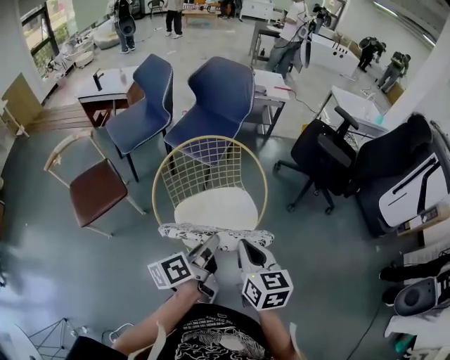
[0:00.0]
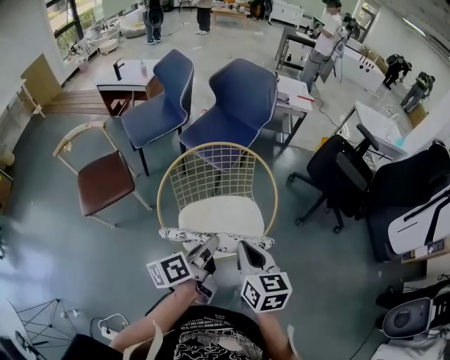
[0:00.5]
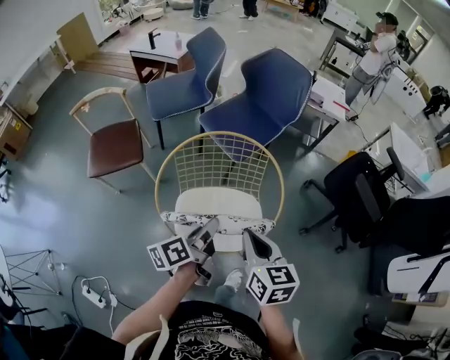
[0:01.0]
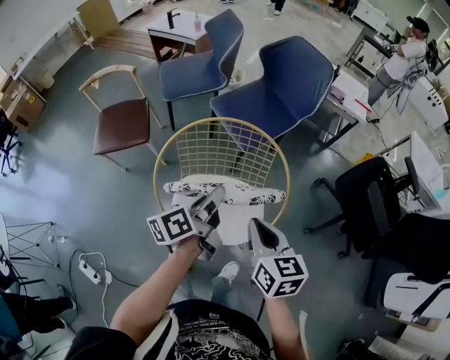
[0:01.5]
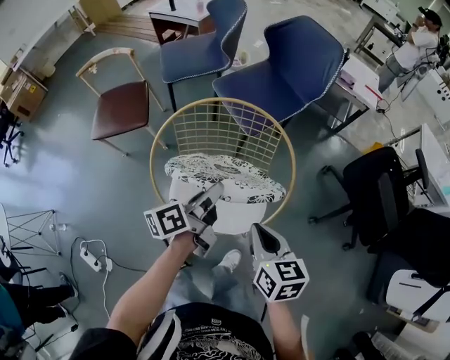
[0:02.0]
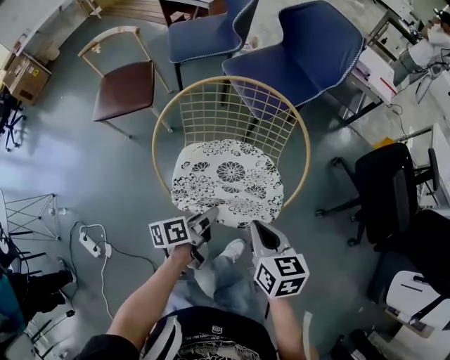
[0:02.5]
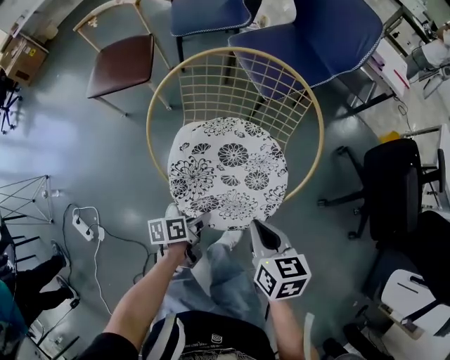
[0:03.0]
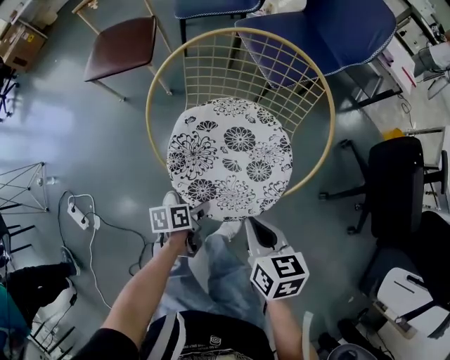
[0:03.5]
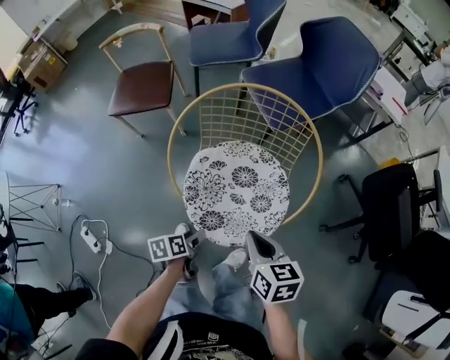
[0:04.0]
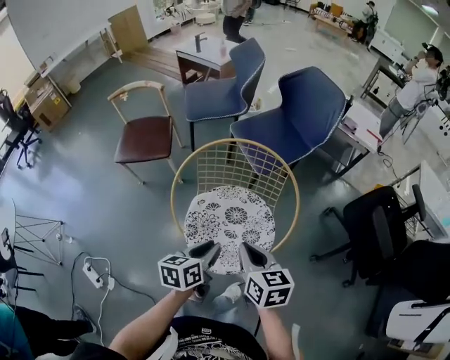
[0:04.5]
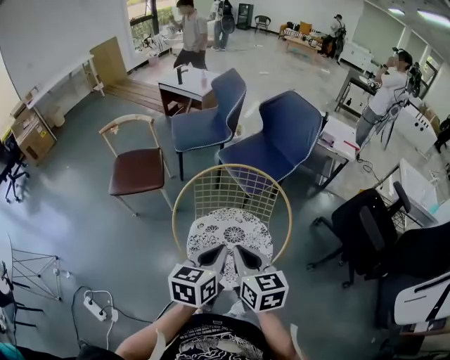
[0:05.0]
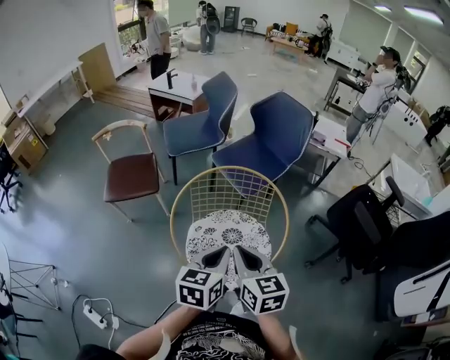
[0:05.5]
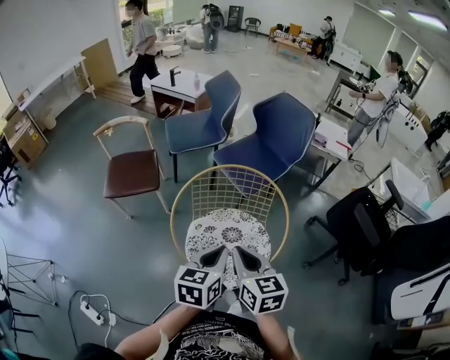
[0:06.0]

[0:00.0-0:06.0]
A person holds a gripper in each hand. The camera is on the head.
0:00.0 to 0:02.0: The right gripper changes place by about 20 cm, and rotates about 30 degrees. Meanwhile the left gripper ends up about 20 cm from where it was, and turns by roughly 20 degrees.
0:02.0 to 0:04.0: The right gripper moves downward and to the left, about 10 cm, while the left gripper heads downward, backward and to the left, covering some 30 cm, tips its fingers downward by approximately 40 degrees, and opens its fingers.
0:04.0 to 0:06.0: The left gripper heads upward, covering approximately 30 cm, rolls clockwise, seen from behind, by about 50 degrees, and closes its fingers, while the right gripper shifts roughly 15 cm upward, and swivels about 20 degrees.

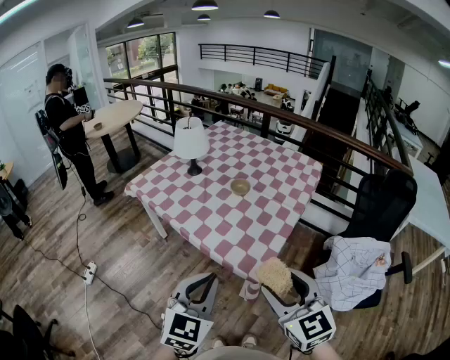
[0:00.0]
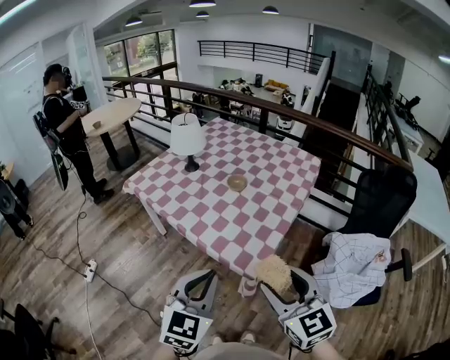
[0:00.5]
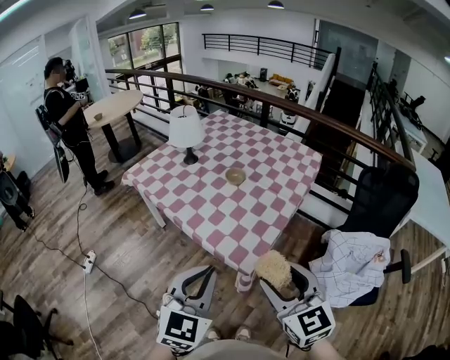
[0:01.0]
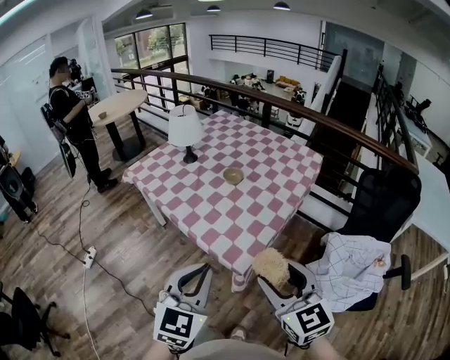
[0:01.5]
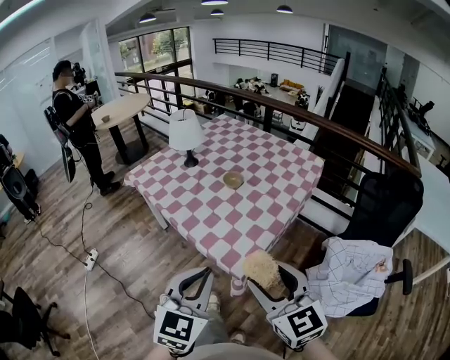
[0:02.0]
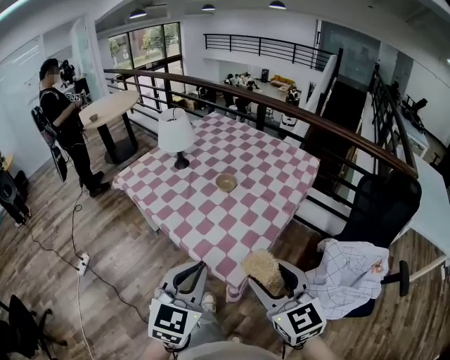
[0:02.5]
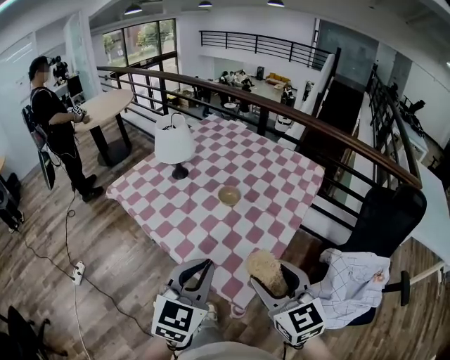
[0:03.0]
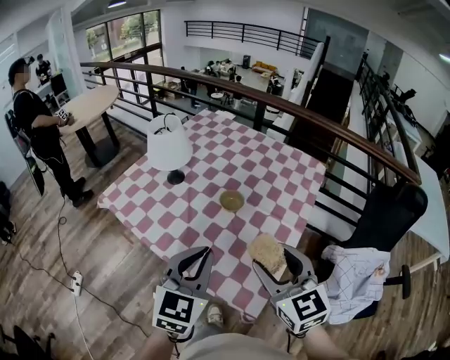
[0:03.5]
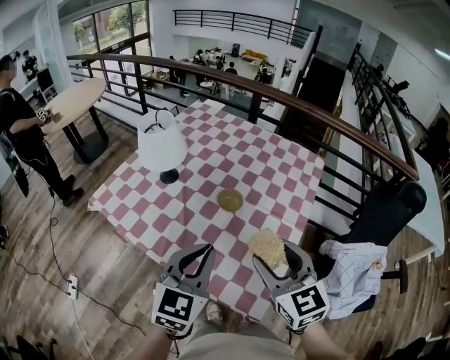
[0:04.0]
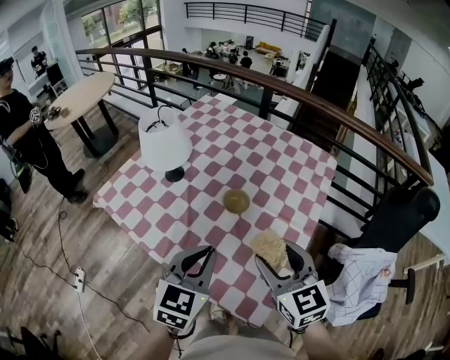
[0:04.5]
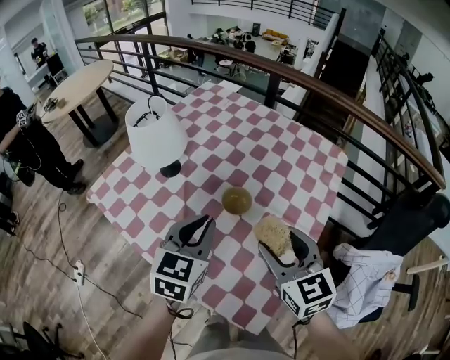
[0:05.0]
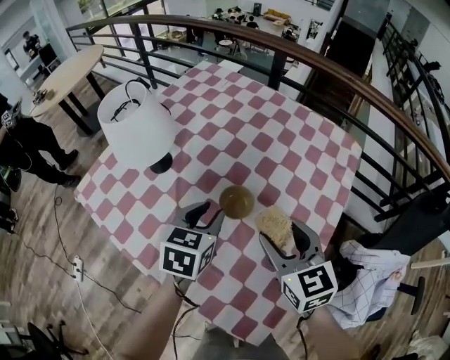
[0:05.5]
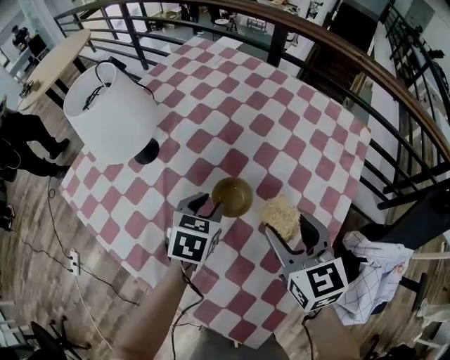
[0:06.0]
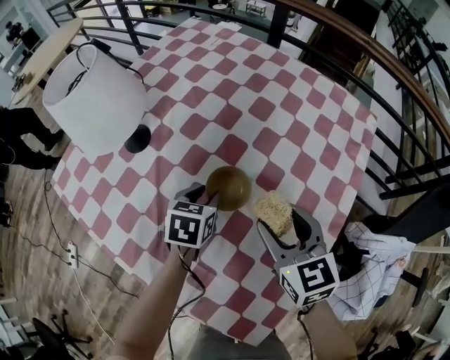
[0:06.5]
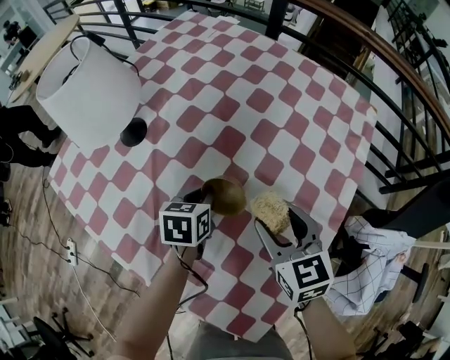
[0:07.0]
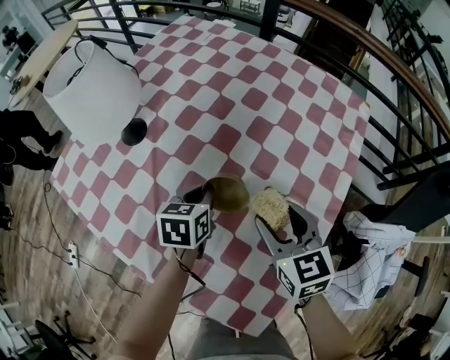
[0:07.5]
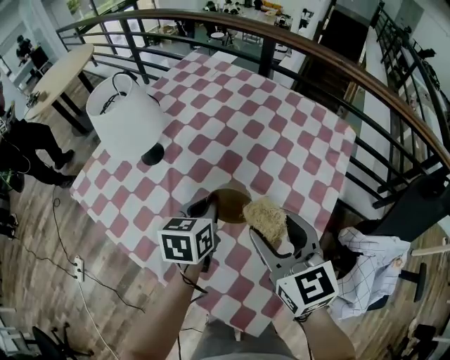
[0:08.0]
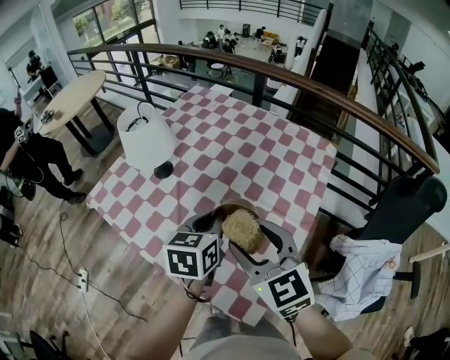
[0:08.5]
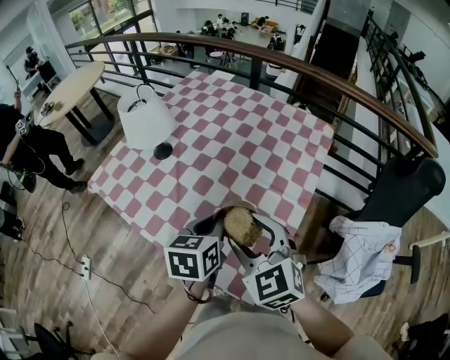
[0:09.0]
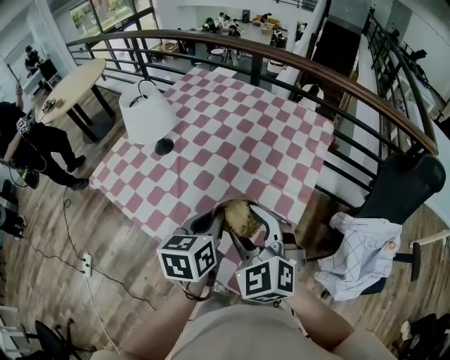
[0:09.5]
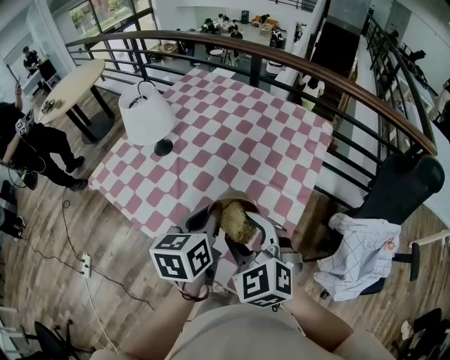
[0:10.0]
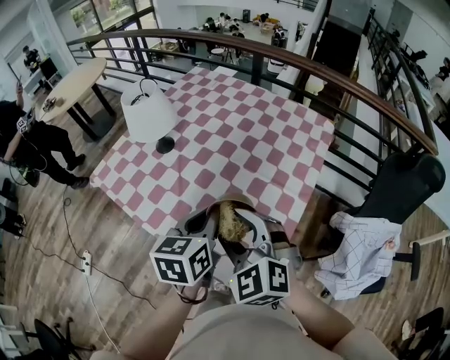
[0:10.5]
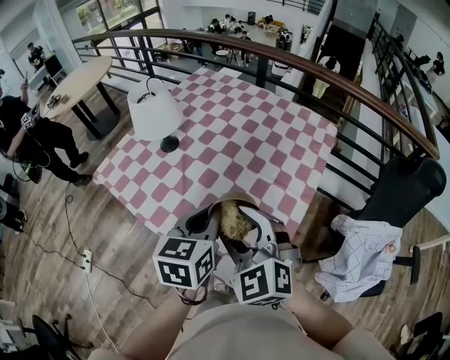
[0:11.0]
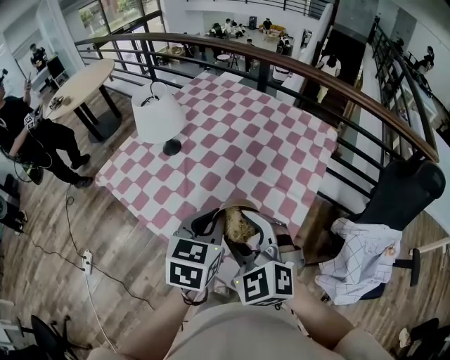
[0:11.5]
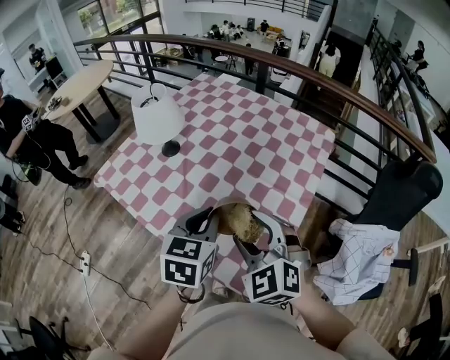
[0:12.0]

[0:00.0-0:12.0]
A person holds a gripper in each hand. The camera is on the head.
0:00.0 to 0:02.0: The grippers both shift to the right by some 10 cm.
0:02.0 to 0:04.0: Both grippers move forward, approximately 35 cm.
0:04.0 to 0:06.0: The two grippers go some 35 cm forward and downward. The left gripper angles its fingers downward, by some 30 degrees, and opens its fingers.
0:06.0 to 0:08.0: The left gripper shifts about 10 cm upward, and closes up; the right gripper is displaced upward and backward by roughly 10 cm.
0:08.0 to 0:10.0: The right gripper goes about 15 cm backward, and swivels approximately 30 degrees. Meanwhile the left gripper shifts some 25 cm backward and upward.
0:10.0 to 0:12.0: The left gripper turns by some 20 degrees.

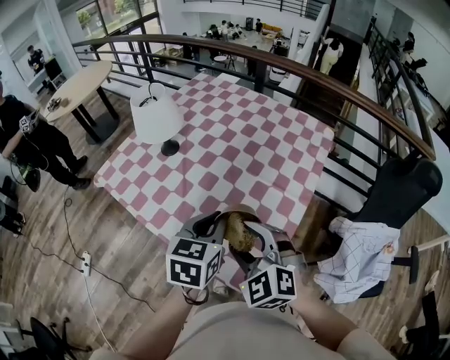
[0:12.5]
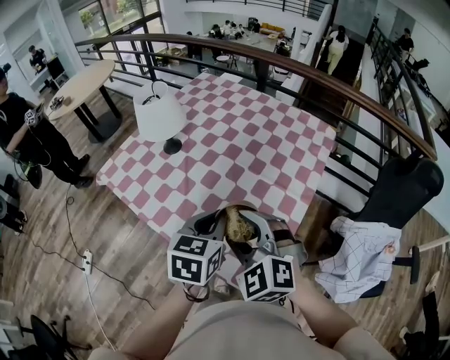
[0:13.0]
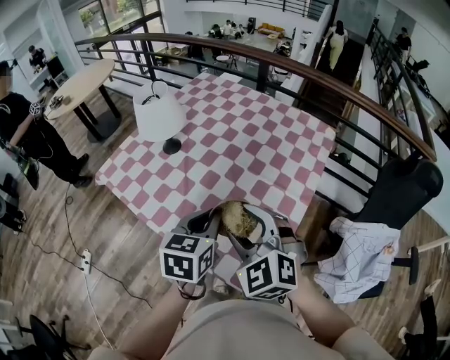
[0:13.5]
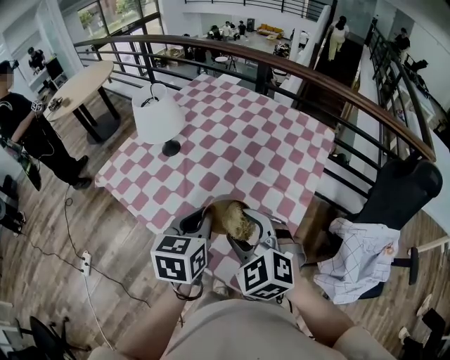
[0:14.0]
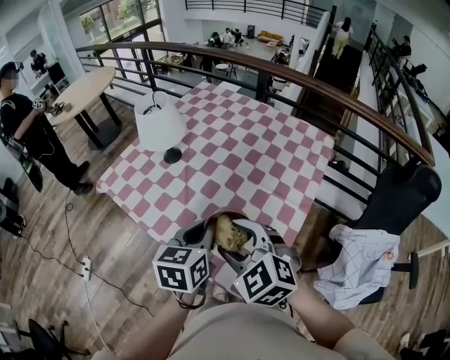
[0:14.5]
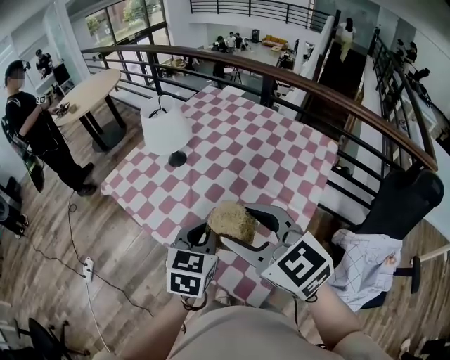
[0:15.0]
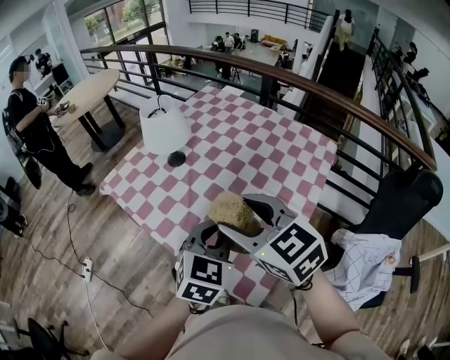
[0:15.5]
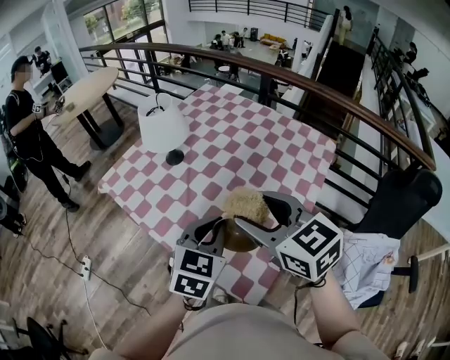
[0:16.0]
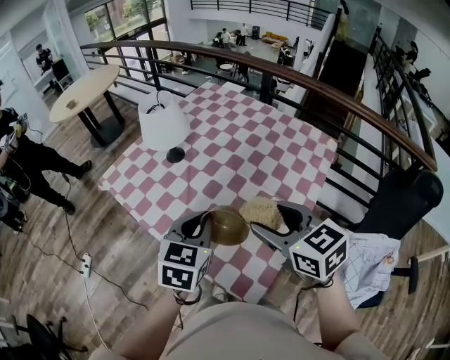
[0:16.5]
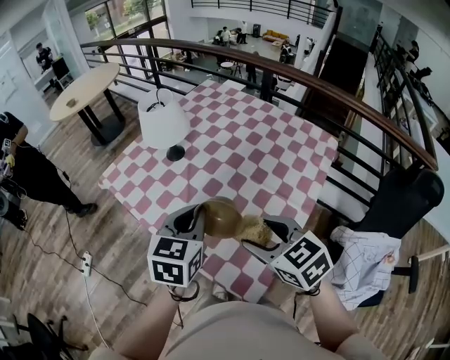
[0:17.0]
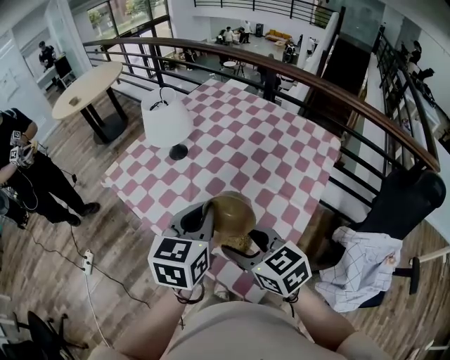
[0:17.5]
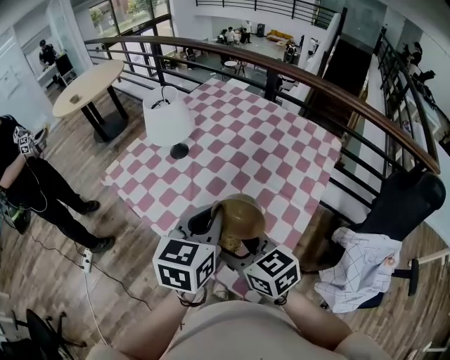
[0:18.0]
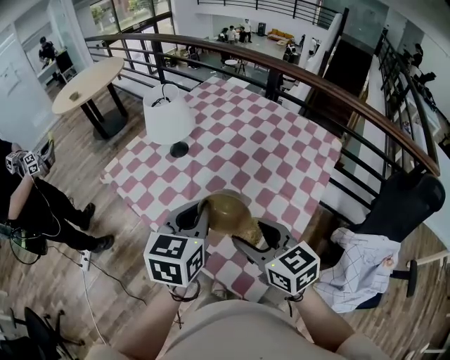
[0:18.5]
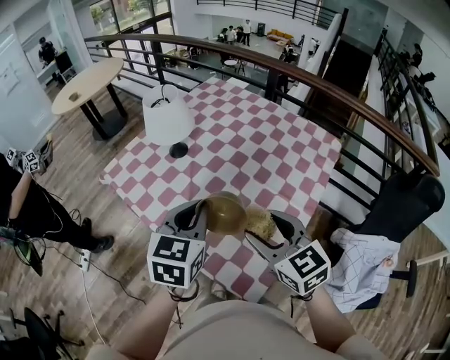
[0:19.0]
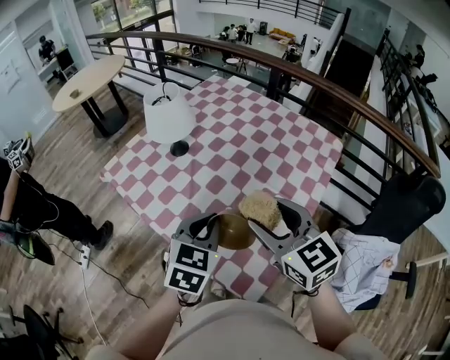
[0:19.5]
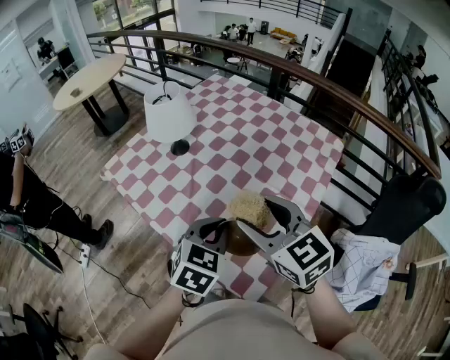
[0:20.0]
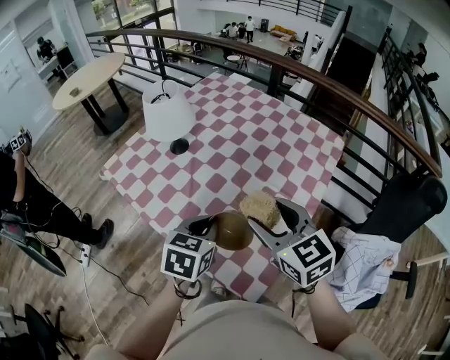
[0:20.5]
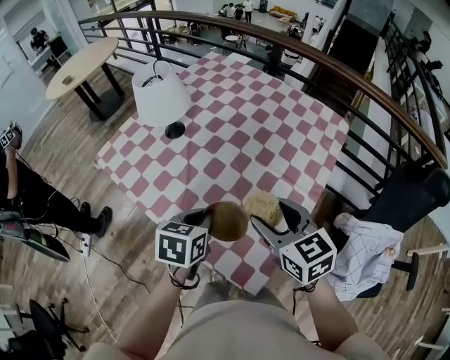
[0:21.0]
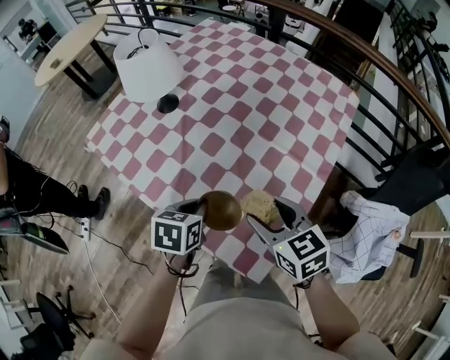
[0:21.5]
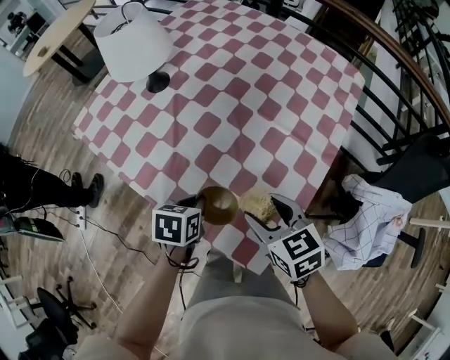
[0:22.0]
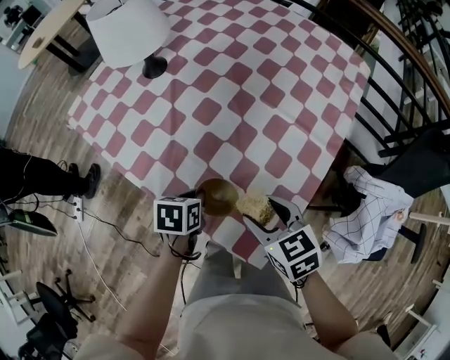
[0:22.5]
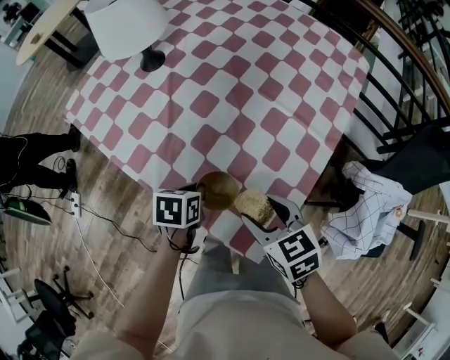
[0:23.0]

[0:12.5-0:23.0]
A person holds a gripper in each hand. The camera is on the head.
0:12.5 to 0:14.5: The grippers make only small movements.
0:14.5 to 0:16.5: The right gripper shifts some 10 cm to the right, and rotates about 30 degrees.
0:16.5 to 0:19.0: The right gripper goes to the left and returns, approximately 10 cm each way.
0:19.0 to 0:21.0: The left gripper travels downward by approximately 15 cm, and swivels approximately 30 degrees; the right gripper changes place by approximately 5 cm.
0:21.0 to 0:23.0: The two grippers go some 20 cm downward. The left gripper swivels about 20 degrees, while the right gripper turns by about 20 degrees.
